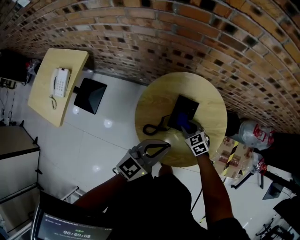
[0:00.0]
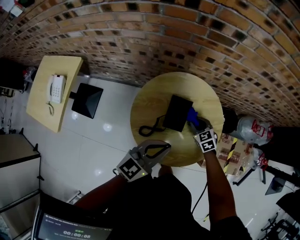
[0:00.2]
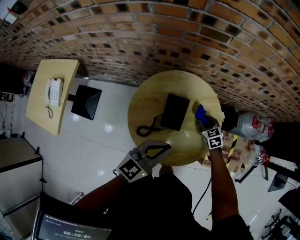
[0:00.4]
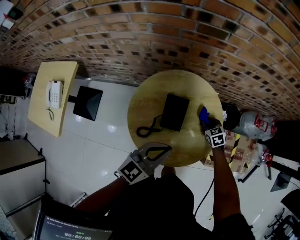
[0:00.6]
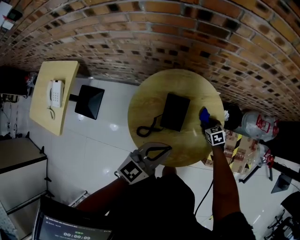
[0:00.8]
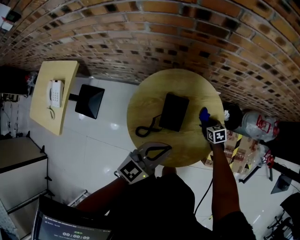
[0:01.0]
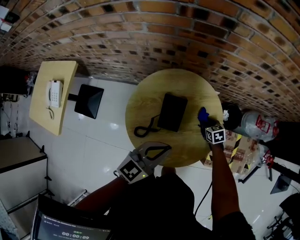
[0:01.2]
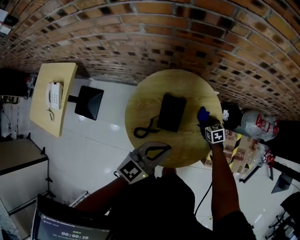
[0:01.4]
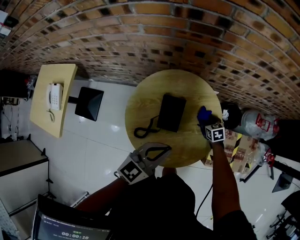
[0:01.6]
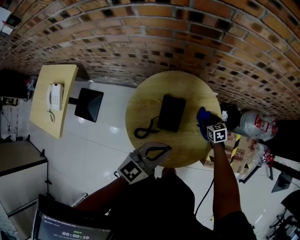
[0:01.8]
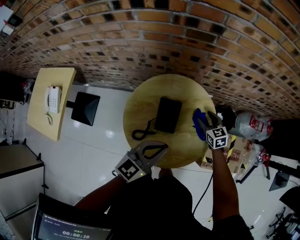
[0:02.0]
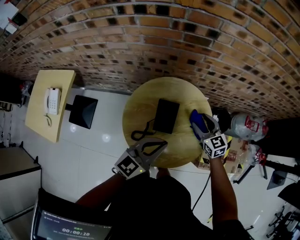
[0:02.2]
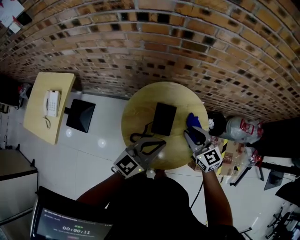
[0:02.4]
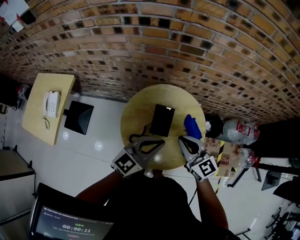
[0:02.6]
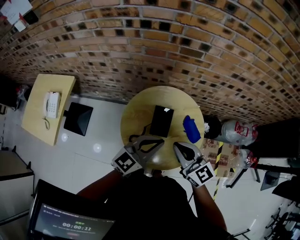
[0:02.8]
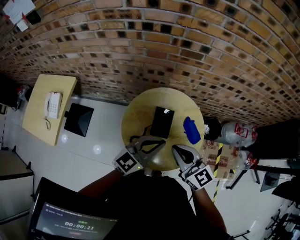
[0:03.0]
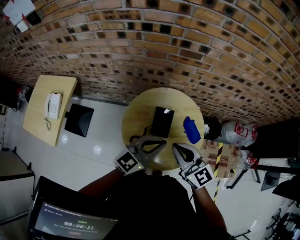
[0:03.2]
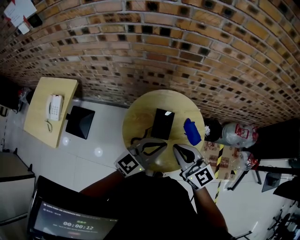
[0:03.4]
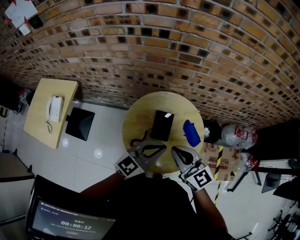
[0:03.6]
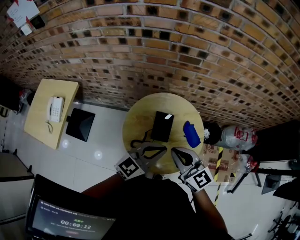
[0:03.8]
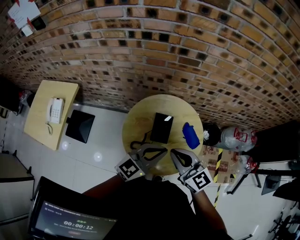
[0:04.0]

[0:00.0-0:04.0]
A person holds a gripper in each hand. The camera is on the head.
0:00.0 to 0:01.4: The right gripper is displaced to the right, downward and forward by some 20 cm, and turns by some 30 degrees. Meanwhile the left gripper moves to the right, about 10 cm.
0:01.4 to 0:02.6: The right gripper is displaced upward by some 35 cm, tips its fingers upward by about 40 degrees, and closes its fingers. The left gripper moves upward, roughly 10 cm.
0:02.6 to 0:04.0: The right gripper travels backward by approximately 5 cm.

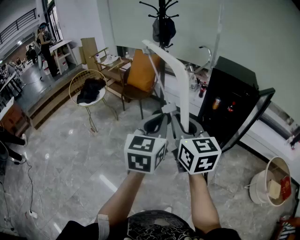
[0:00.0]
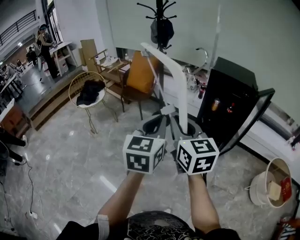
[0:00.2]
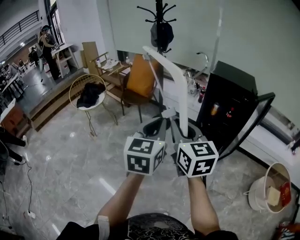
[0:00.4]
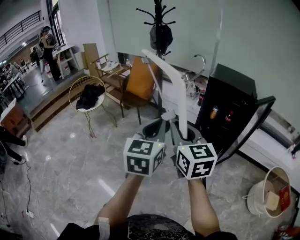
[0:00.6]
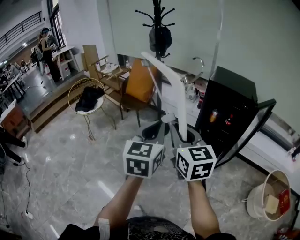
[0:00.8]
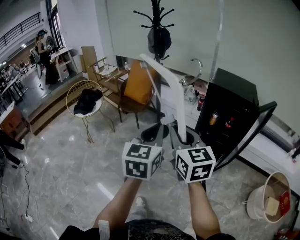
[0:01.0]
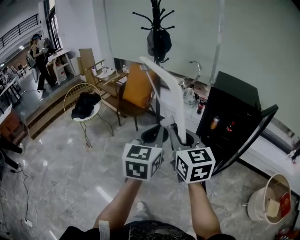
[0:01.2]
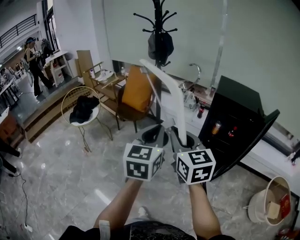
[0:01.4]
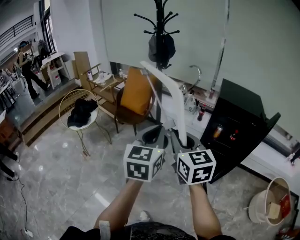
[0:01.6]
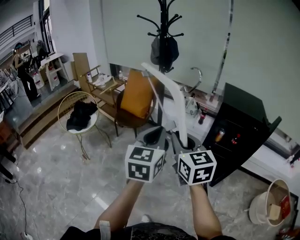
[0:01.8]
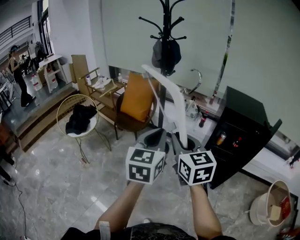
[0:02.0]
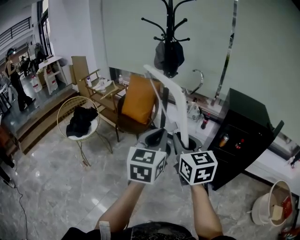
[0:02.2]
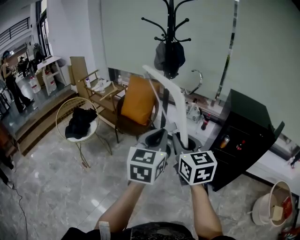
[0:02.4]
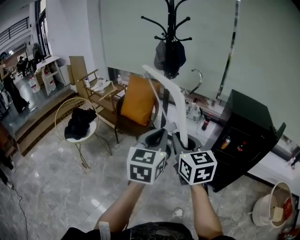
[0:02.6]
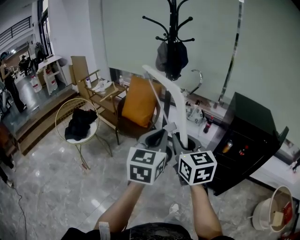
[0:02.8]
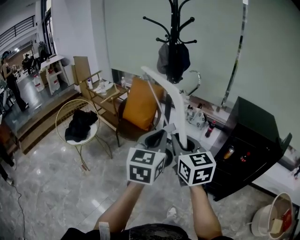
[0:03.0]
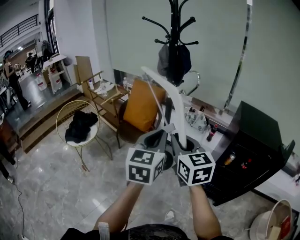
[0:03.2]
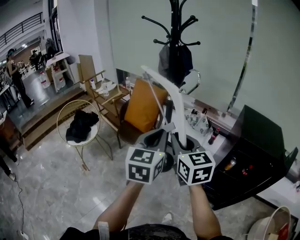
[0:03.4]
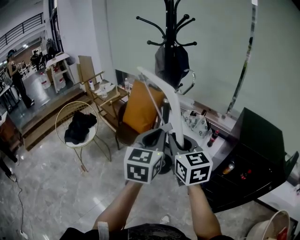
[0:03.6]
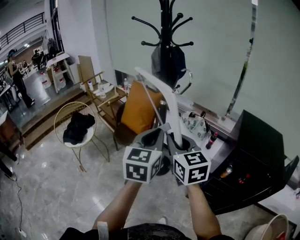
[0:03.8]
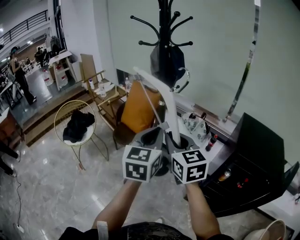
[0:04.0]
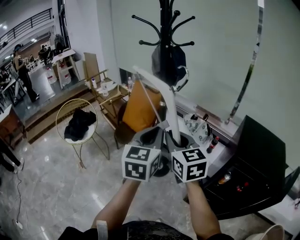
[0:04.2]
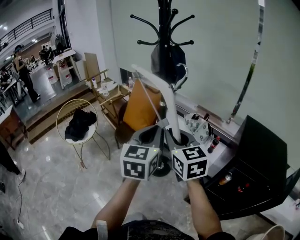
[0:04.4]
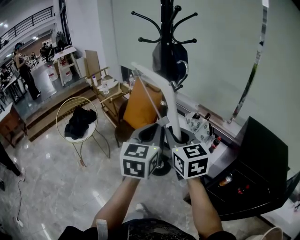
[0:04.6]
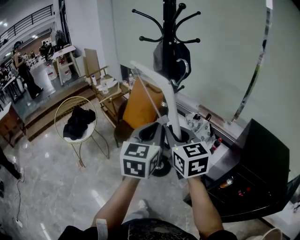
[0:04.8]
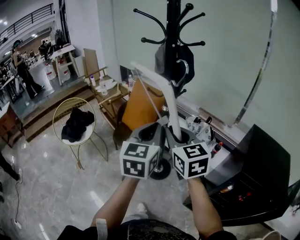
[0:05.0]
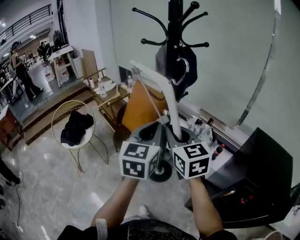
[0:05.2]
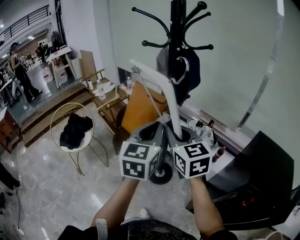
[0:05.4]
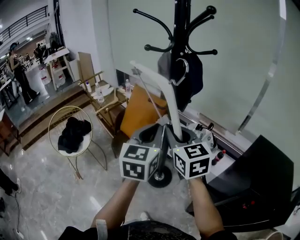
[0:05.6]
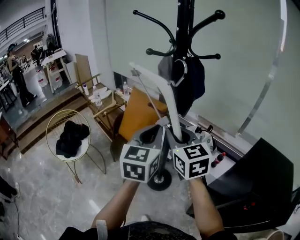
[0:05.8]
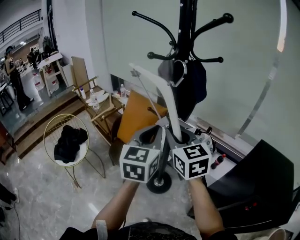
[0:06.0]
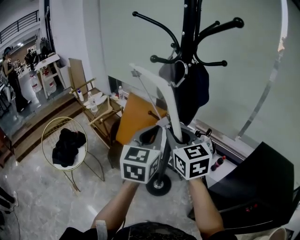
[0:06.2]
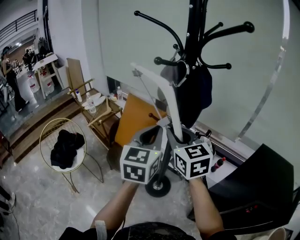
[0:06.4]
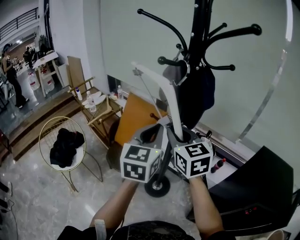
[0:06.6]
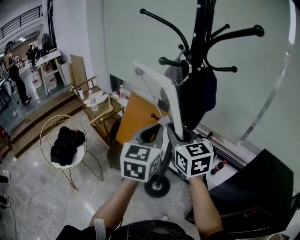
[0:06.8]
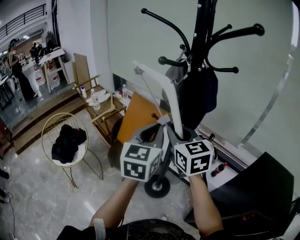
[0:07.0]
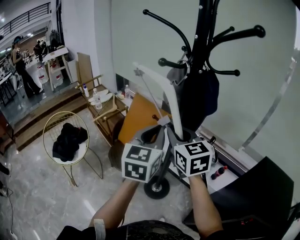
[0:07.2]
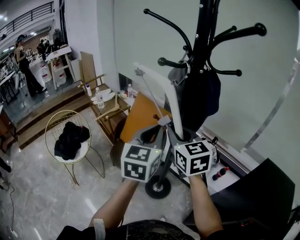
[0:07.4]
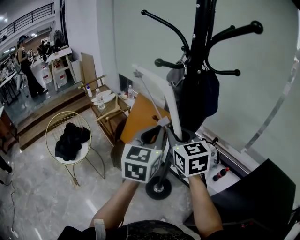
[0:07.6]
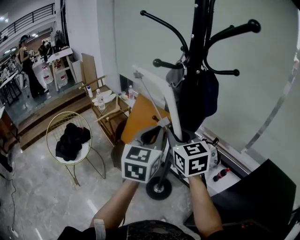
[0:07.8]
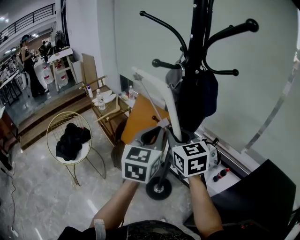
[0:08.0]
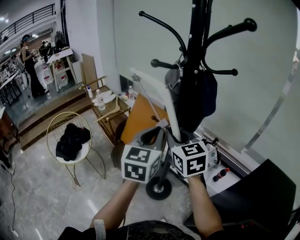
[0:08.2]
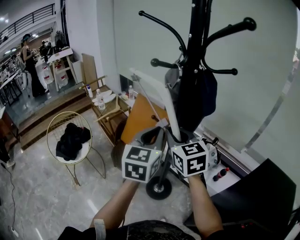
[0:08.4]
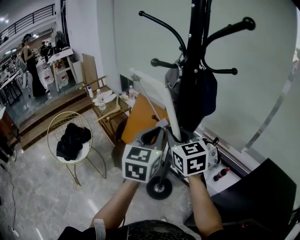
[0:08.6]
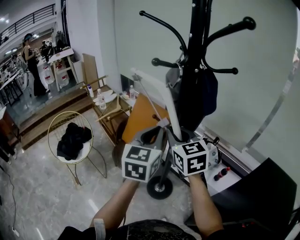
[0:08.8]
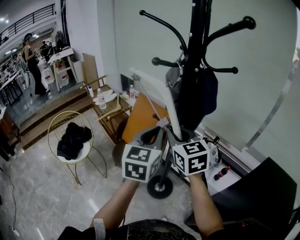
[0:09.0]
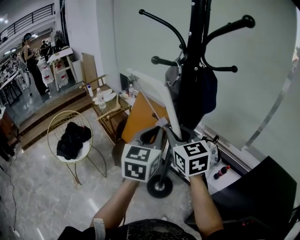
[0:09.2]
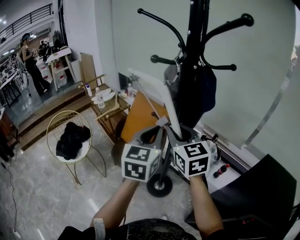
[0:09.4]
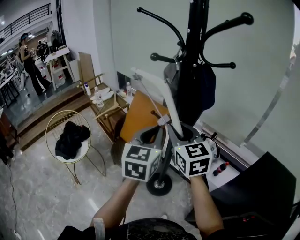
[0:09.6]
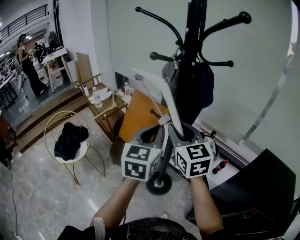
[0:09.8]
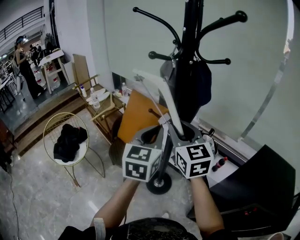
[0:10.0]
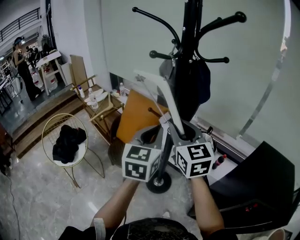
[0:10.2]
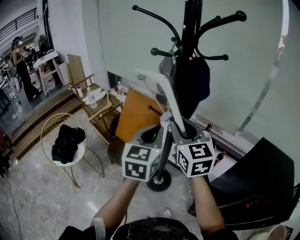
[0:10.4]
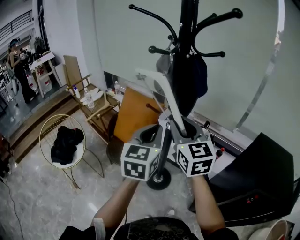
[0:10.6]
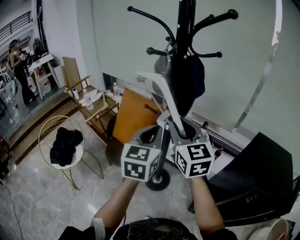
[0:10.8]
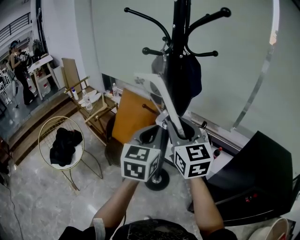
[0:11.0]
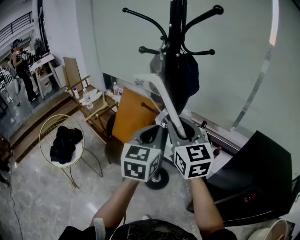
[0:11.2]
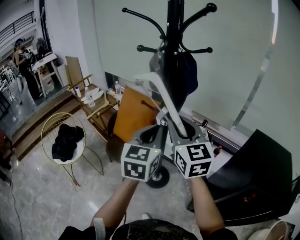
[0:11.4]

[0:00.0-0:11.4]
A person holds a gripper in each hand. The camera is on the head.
0:00.0 to 0:01.4: The grippers both shift forward by some 15 cm.
0:01.4 to 0:02.8: Both grippers move forward and to the left, roughly 20 cm.
0:02.8 to 0:04.2: The two grippers go some 25 cm forward and to the right.
0:04.2 to 0:05.6: The two grippers go roughly 20 cm forward.
0:05.6 to 0:07.2: Both grippers travel together forward, some 10 cm.
0:07.2 to 0:08.6: Neither gripper changes place.
0:08.6 to 0:10.0: The grippers make only small movements.
0:10.0 to 0:11.4: Both grippers move backward, roughly 5 cm.

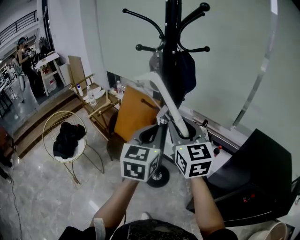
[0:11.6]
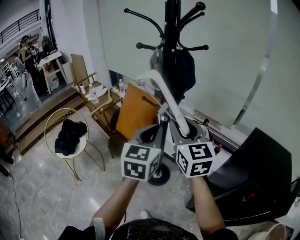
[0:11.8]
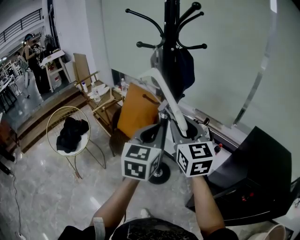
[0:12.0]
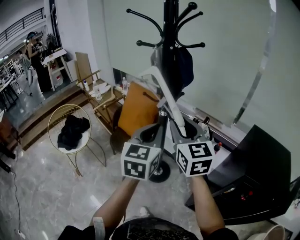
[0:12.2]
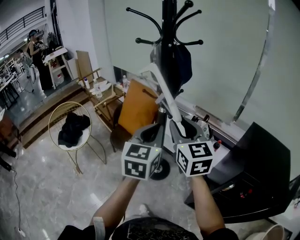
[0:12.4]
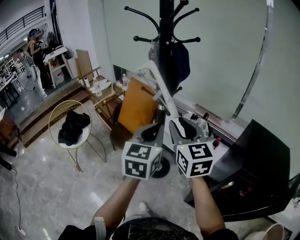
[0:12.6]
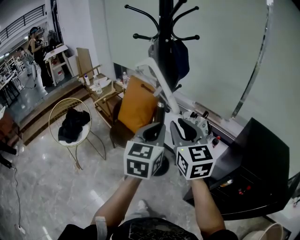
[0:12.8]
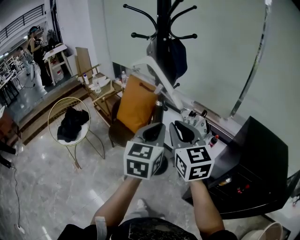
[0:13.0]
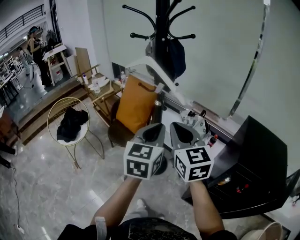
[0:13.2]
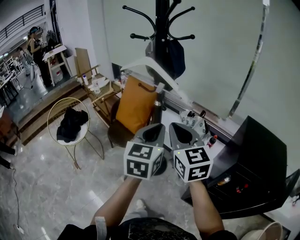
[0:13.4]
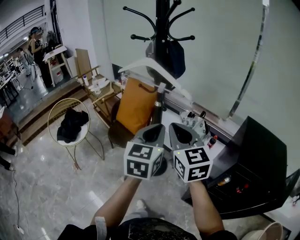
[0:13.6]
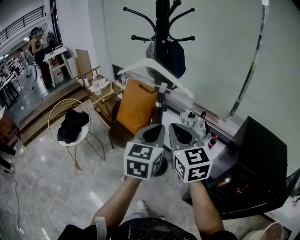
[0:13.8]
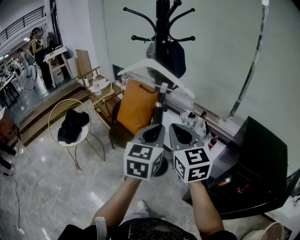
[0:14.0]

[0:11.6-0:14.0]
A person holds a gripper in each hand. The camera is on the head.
0:11.6 to 0:12.8: Both grippers travel together backward, roughly 10 cm.
0:12.8 to 0:14.0: The right gripper closes its fingers.

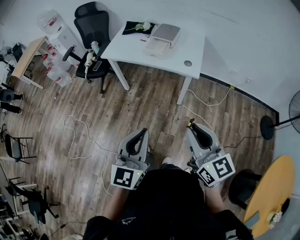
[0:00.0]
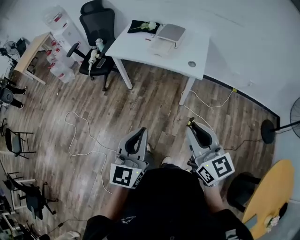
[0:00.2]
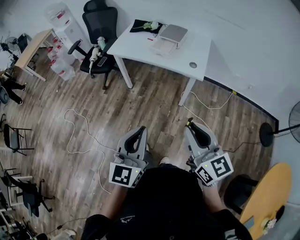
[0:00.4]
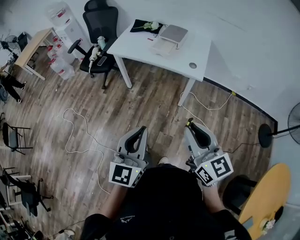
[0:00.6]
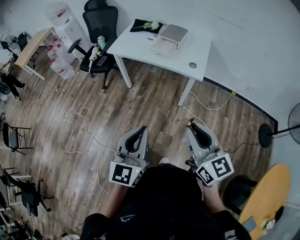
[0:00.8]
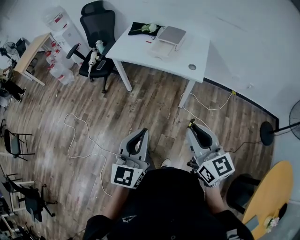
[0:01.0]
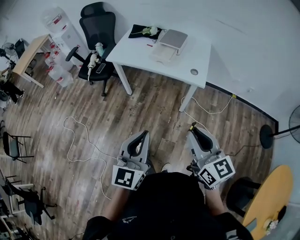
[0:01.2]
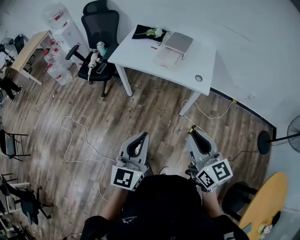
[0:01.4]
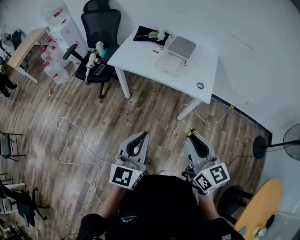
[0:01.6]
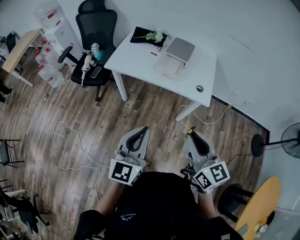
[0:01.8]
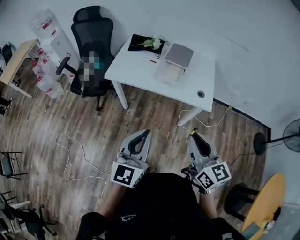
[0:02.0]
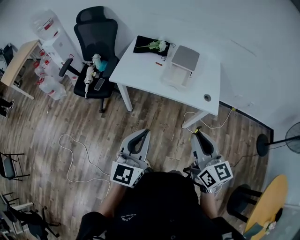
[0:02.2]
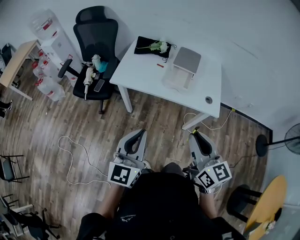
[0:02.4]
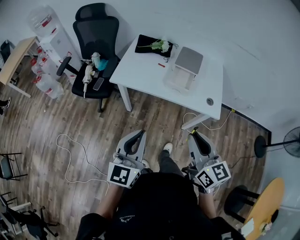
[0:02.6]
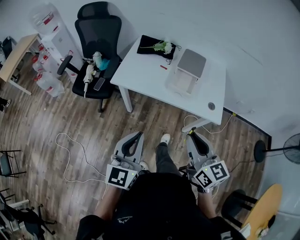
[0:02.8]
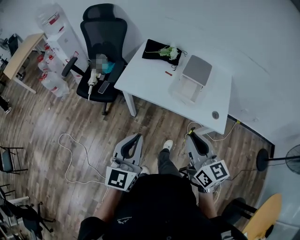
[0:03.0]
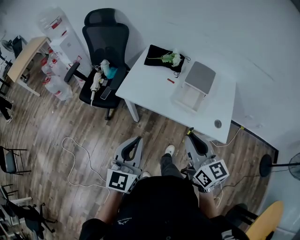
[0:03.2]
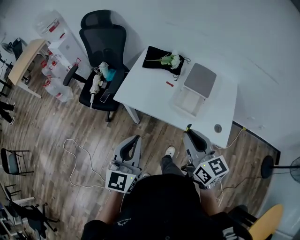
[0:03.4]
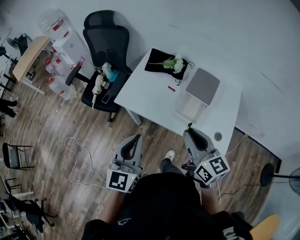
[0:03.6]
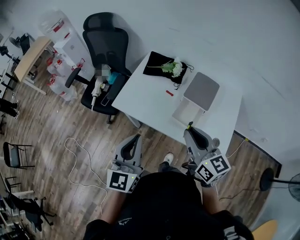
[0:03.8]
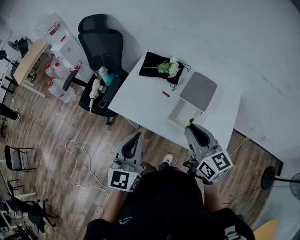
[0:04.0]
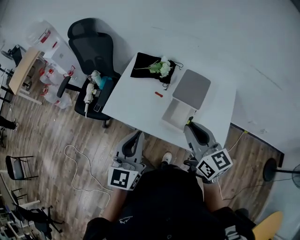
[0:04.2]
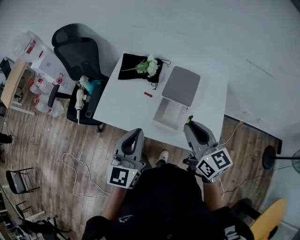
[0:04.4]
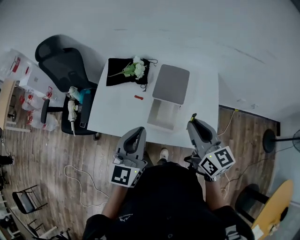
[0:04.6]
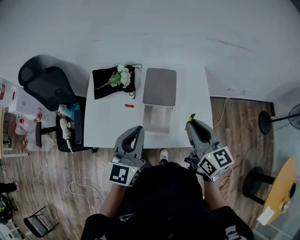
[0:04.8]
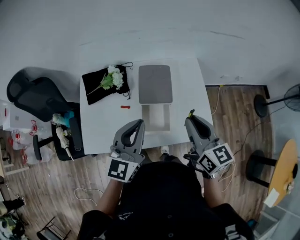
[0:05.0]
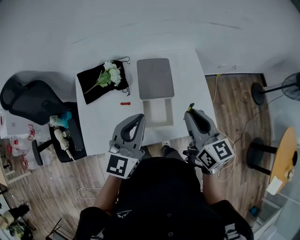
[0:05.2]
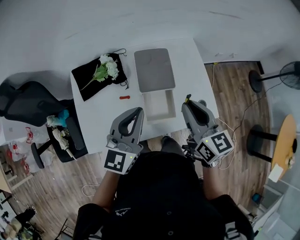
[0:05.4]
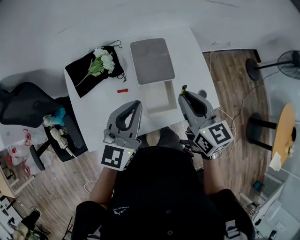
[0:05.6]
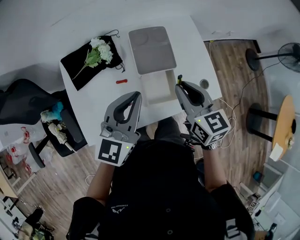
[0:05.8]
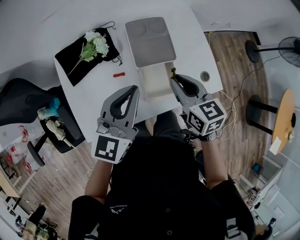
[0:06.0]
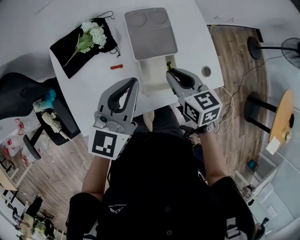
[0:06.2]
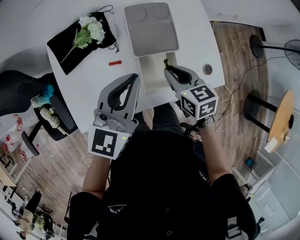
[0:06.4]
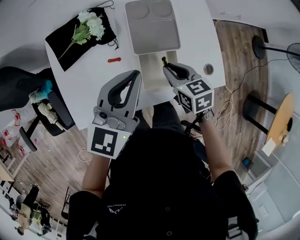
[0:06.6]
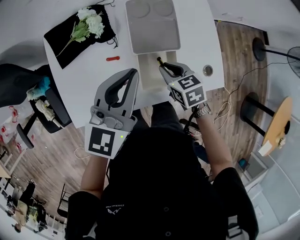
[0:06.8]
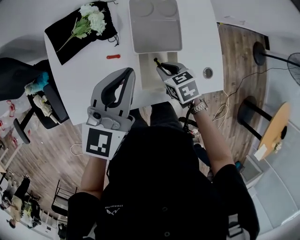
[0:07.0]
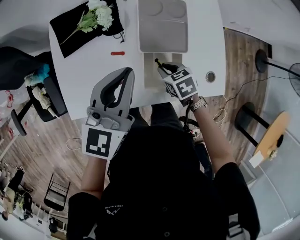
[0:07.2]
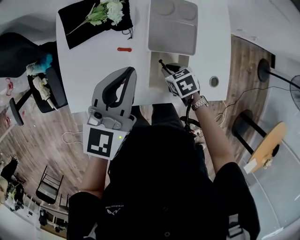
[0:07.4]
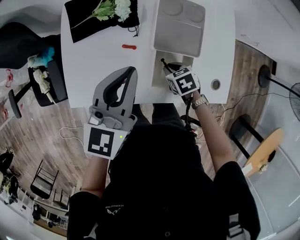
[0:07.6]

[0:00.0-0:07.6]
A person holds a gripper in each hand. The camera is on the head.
0:00.0 to 0:01.6: Both grippers move forward and to the left, some 15 cm.
0:01.6 to 0:03.0: The grippers both shift forward and to the left by some 25 cm.
0:03.0 to 0:04.6: The grippers both shift forward and to the right by approximately 30 cm.
0:04.6 to 0:06.0: The right gripper changes place by approximately 20 cm, and turns by roughly 30 degrees. Meanwhile the left gripper shifts by approximately 20 cm, and swivels approximately 40 degrees.
0:06.0 to 0:07.6: The left gripper shifts by roughly 5 cm, and swivels approximately 20 degrees. The right gripper shifts about 25 cm downward, and tilts its fingers roughly 40 degrees downward.
